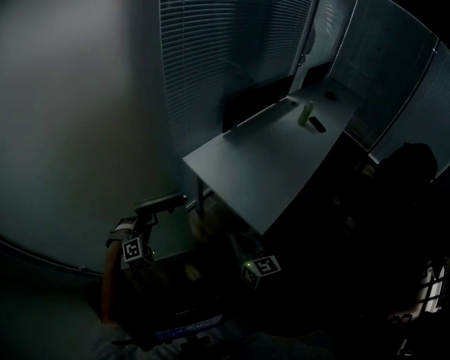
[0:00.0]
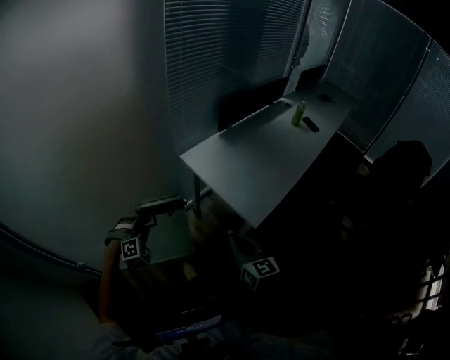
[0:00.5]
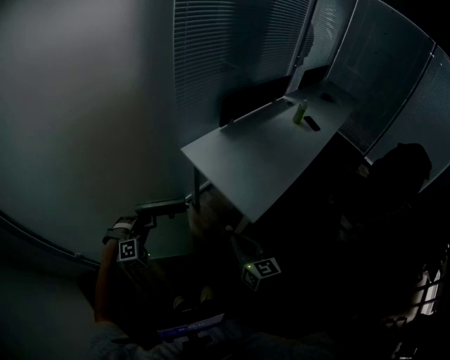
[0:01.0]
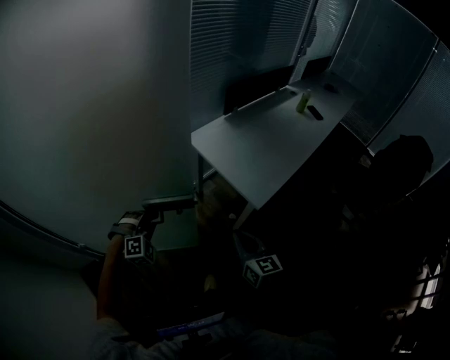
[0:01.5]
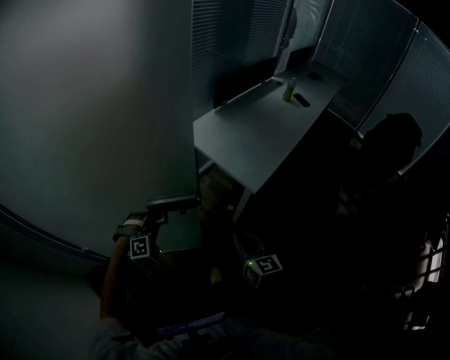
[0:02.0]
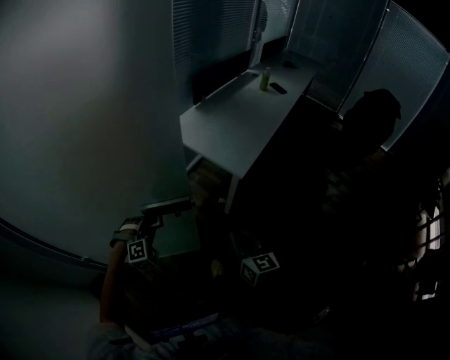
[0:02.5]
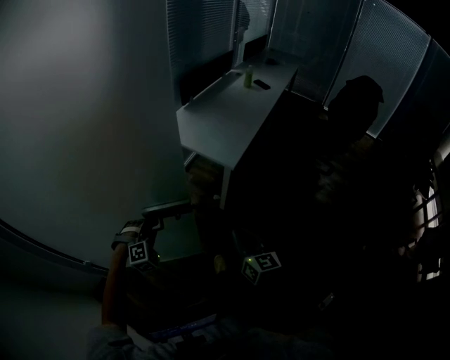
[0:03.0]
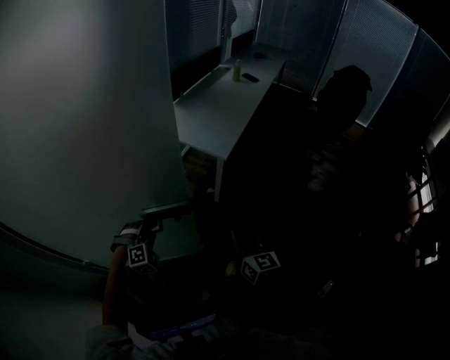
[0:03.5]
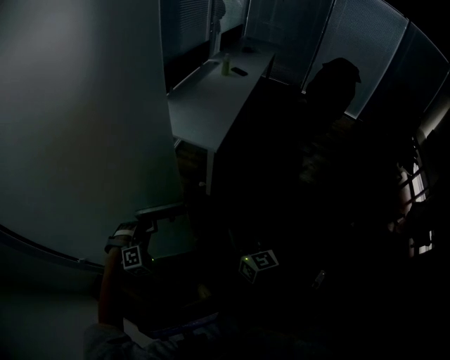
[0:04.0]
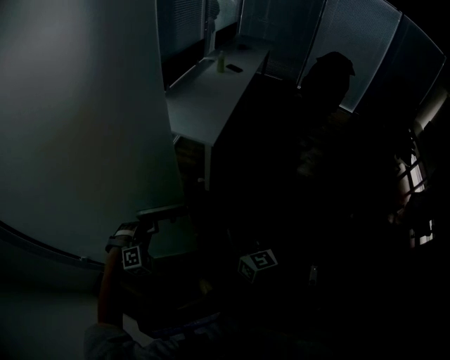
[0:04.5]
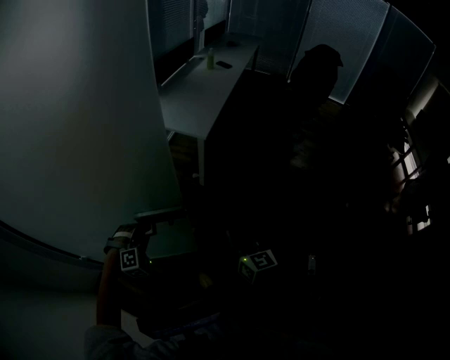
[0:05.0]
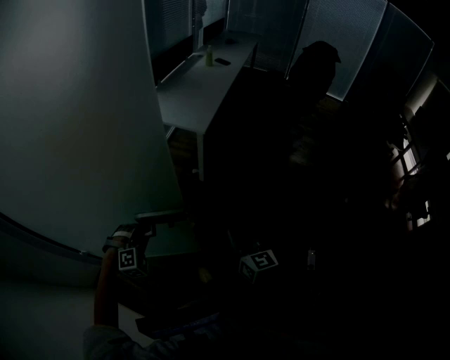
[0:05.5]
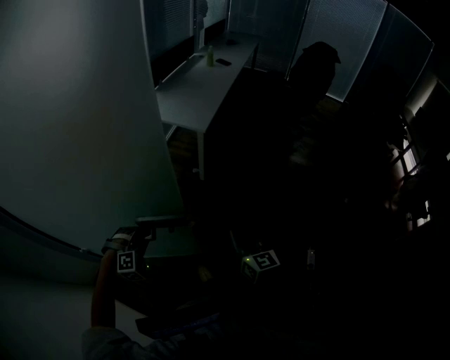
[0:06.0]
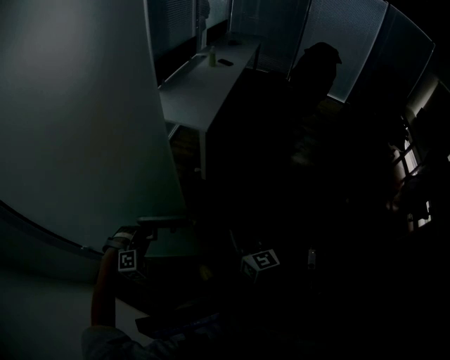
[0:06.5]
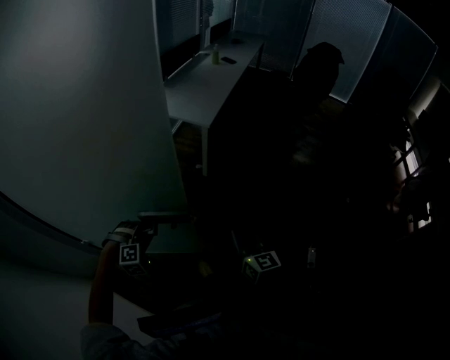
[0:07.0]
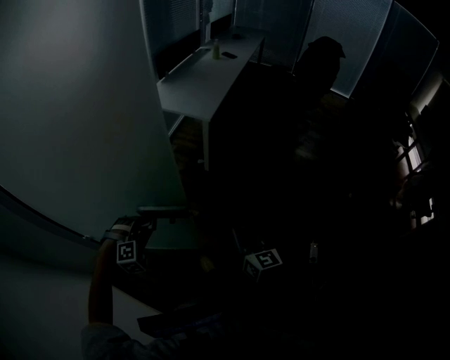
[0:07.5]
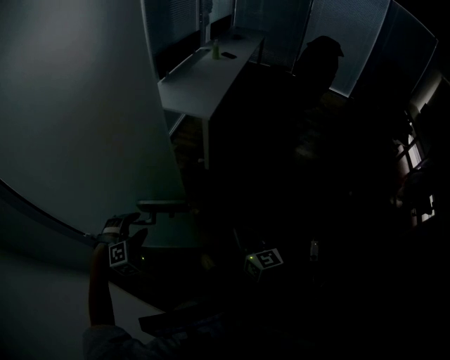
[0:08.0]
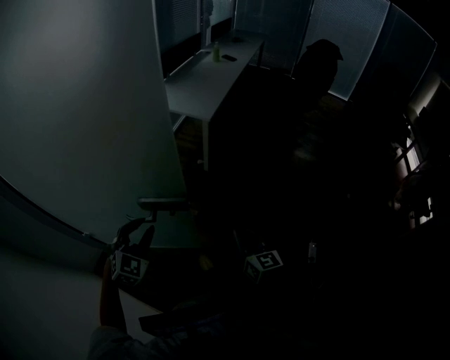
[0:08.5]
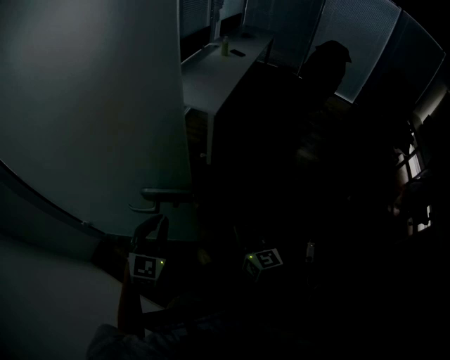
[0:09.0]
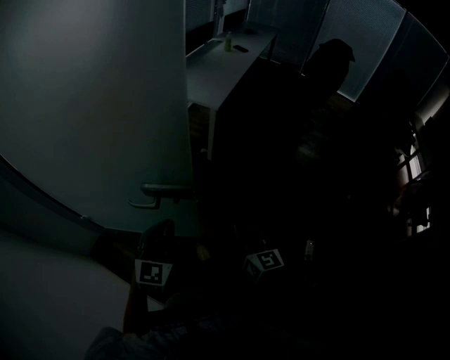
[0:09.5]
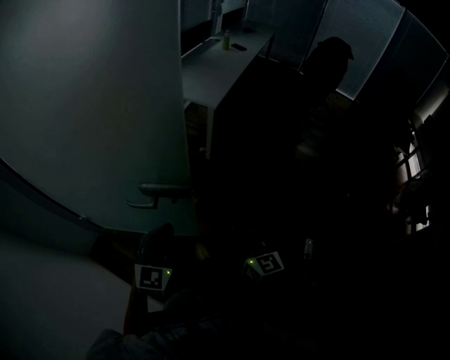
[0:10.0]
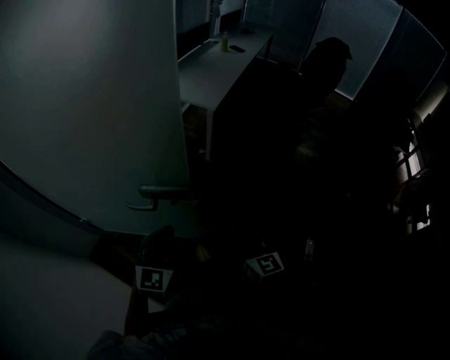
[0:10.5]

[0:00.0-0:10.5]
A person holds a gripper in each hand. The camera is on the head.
0:00.0 to 0:02.0: The two grippers go about 20 cm backward.
0:02.0 to 0:04.0: Both grippers travel together backward, about 20 cm.
0:04.0 to 0:06.5: Both grippers travel together backward, roughly 15 cm.
0:06.5 to 0:08.5: The right gripper moves backward, about 5 cm, while the left gripper goes roughly 10 cm upward and backward, swivels about 40 degrees, and opens its fingers.
0:08.5 to 0:10.5: The left gripper heads to the right, covering approximately 5 cm, turns by approximately 30 degrees, and closes up.
